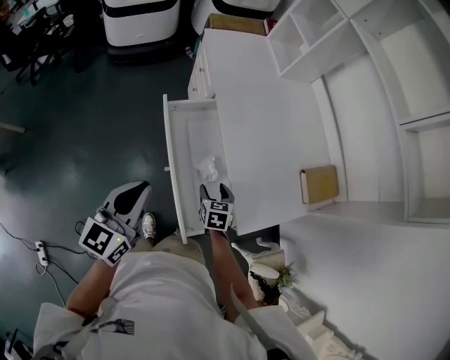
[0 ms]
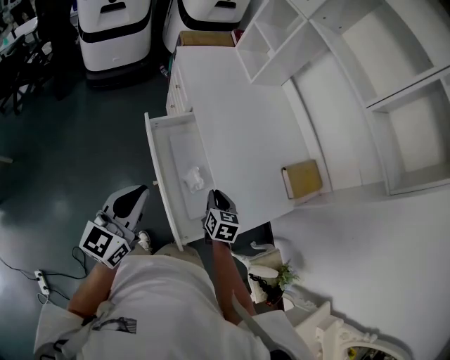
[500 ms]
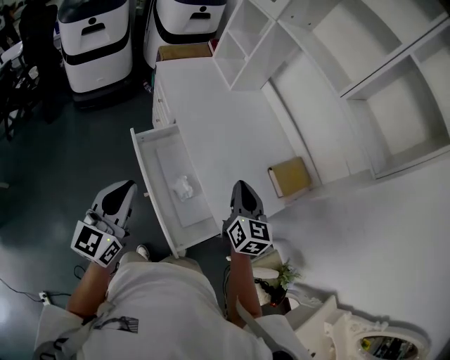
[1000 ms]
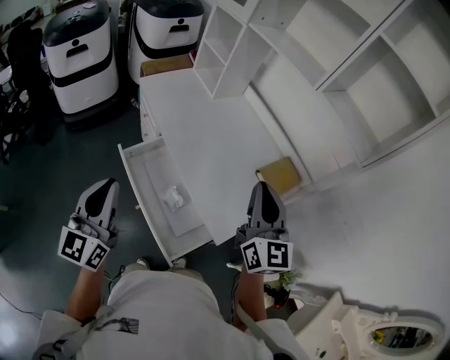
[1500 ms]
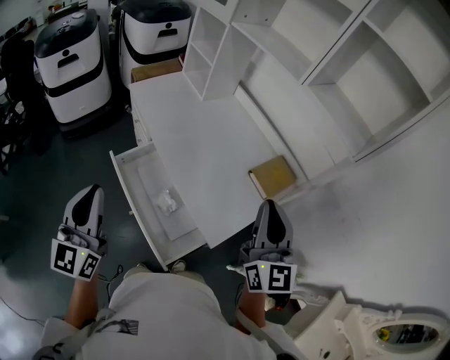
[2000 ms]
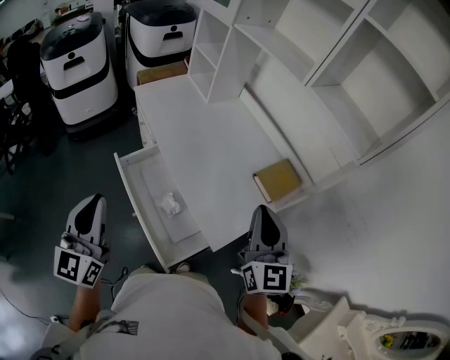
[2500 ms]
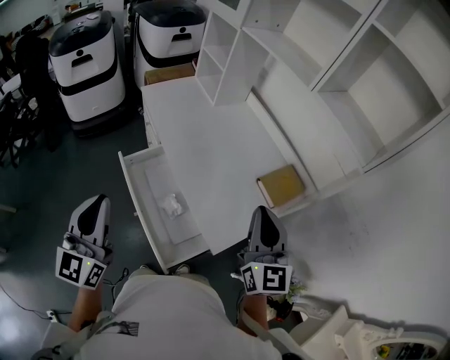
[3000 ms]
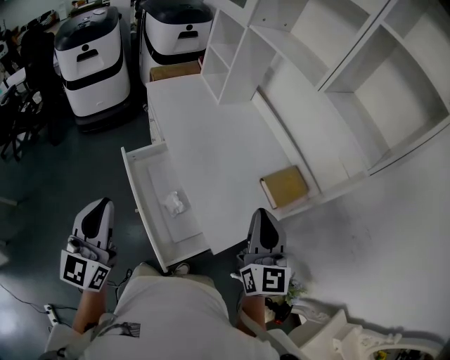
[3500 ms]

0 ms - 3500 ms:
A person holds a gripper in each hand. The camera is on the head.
0 ms - 2000 ms: The right gripper heads upward and to the right, covering about 50 cm, tilts its fingers about 60 degrees upward, and closes its fingers; the left gripper shifts approximately 15 cm upward, and rotates about 20 degrees.
2000 ms - 3500 ms: The right gripper shifts roughly 5 cm downward.

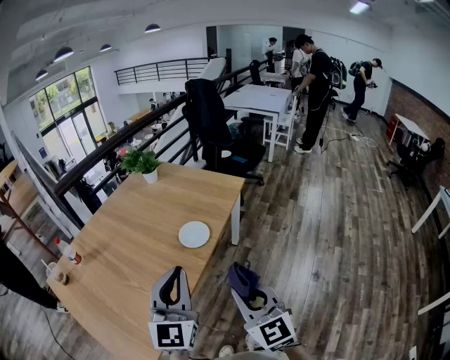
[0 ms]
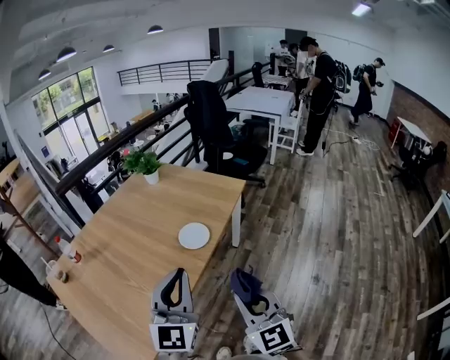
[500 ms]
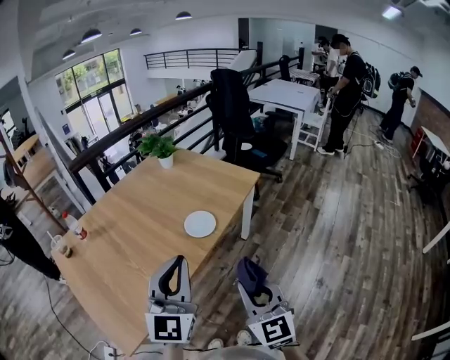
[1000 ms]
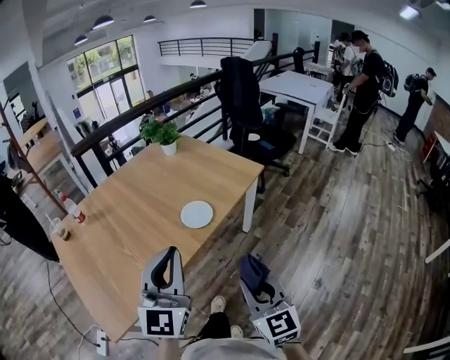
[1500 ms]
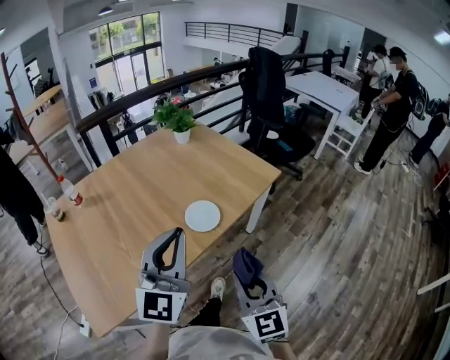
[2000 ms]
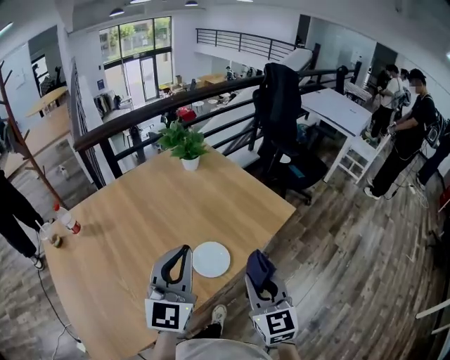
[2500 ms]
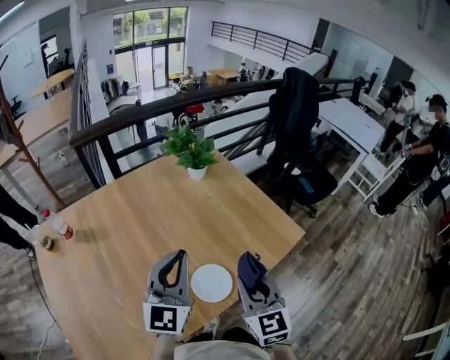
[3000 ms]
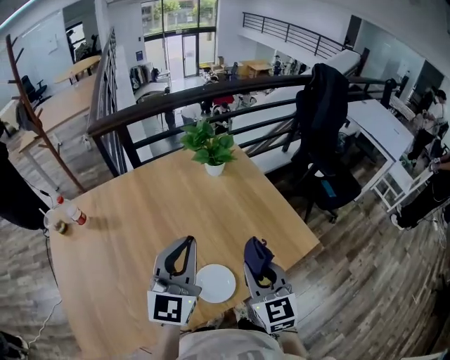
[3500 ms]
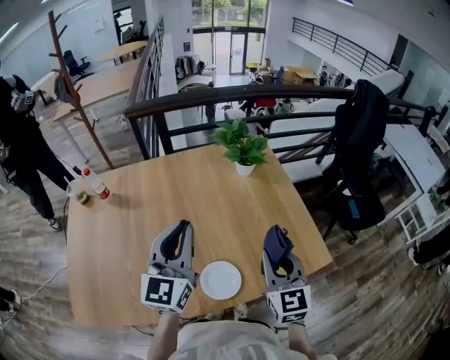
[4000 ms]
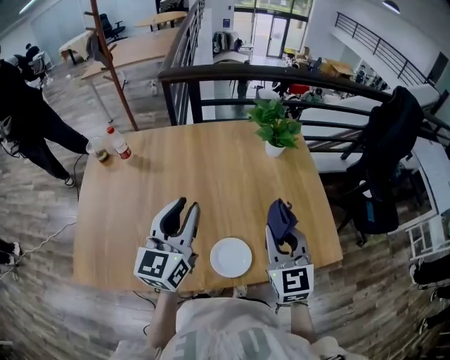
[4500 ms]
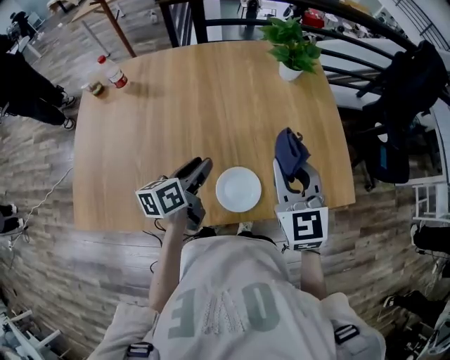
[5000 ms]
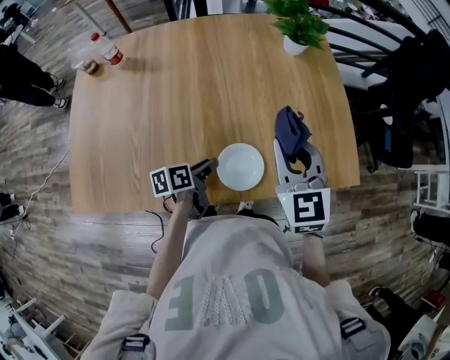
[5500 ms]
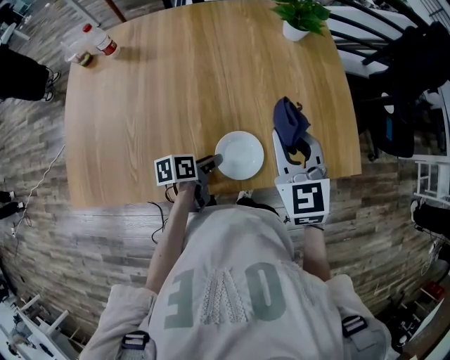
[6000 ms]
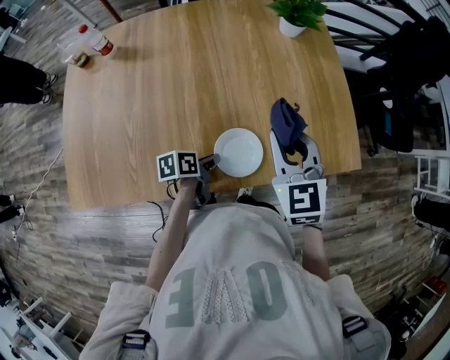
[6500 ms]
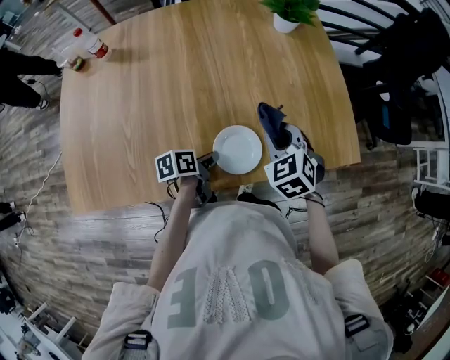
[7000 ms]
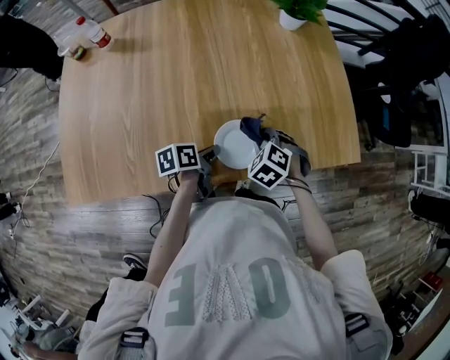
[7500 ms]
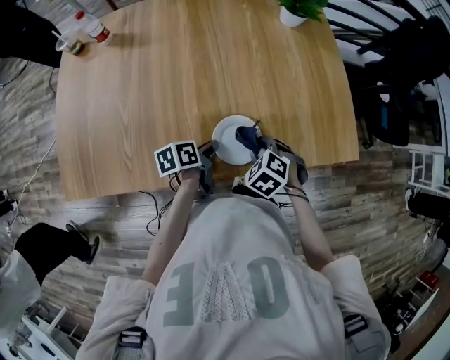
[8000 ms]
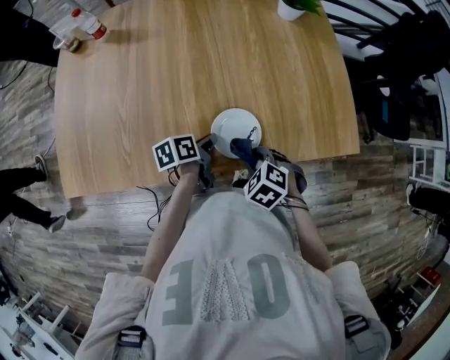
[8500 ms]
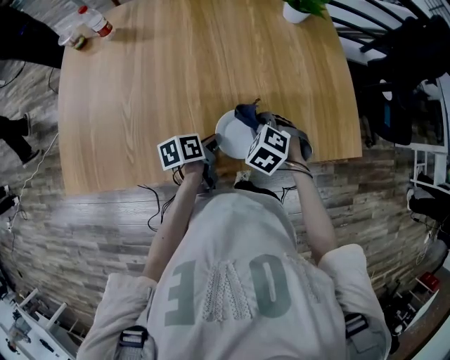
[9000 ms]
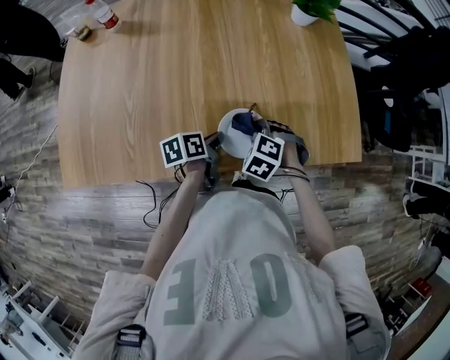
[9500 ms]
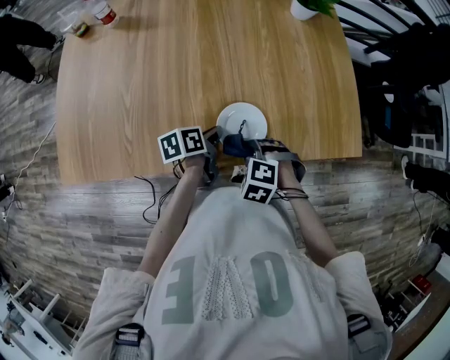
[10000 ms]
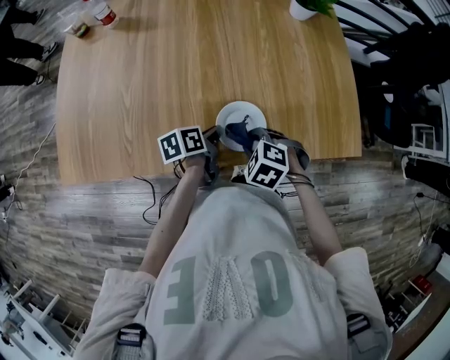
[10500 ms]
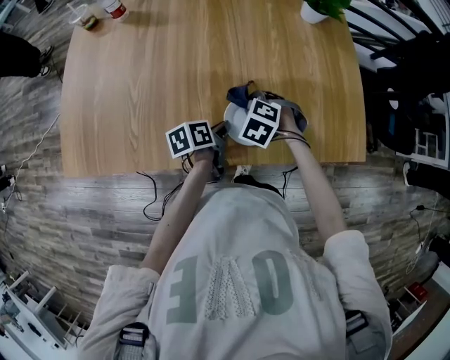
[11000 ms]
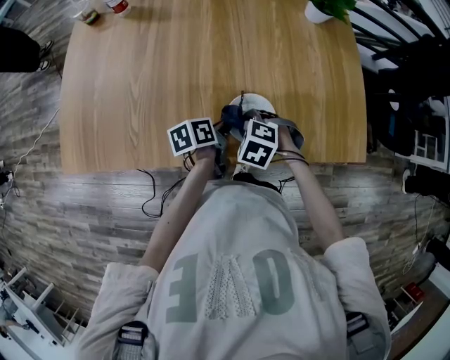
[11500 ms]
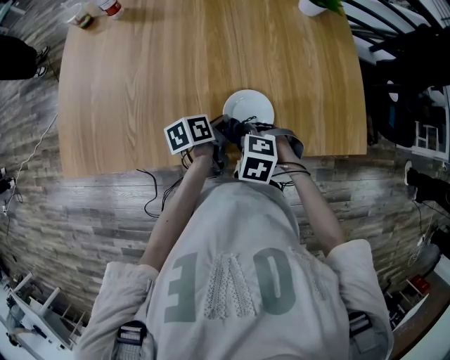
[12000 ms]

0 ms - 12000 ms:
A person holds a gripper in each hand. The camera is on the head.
0 ms - 2000 ms: The left gripper travels forward and to the right by some 10 cm. Meanwhile the right gripper heads forward, to the right and downward, covering about 15 cm.
2000 ms - 4000 ms: The two grippers go approximately 35 cm forward. The left gripper swivels approximately 30 degrees.
4000 ms - 6000 ms: The left gripper goes about 35 cm downward, angles its fingers downward, by approximately 40 degrees, and opens up, while the right gripper travels to the left by some 5 cm.
6000 ms - 8000 ms: The right gripper shifts some 20 cm downward, and points its fingers roughly 50 degrees further downward, while the left gripper closes.
8000 ms - 10000 ms: The right gripper swings forward and backward, roughly 10 cm each way, with 2 reversals, and changes its angle by roughly 20 degrees.

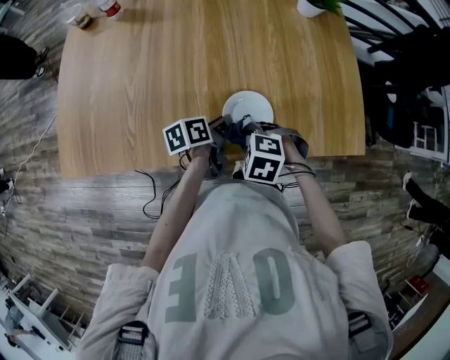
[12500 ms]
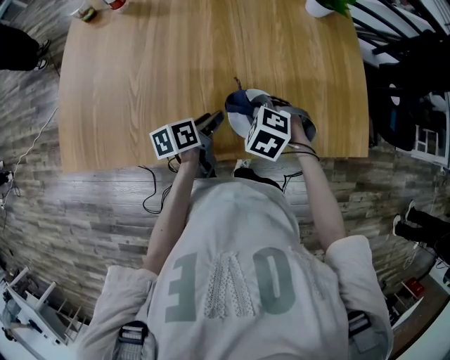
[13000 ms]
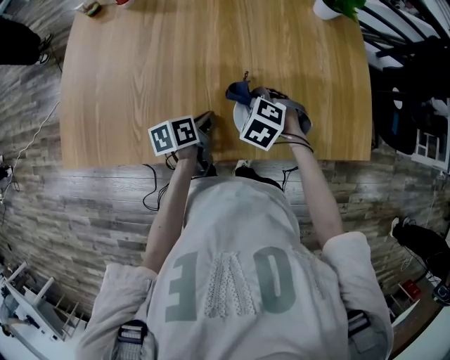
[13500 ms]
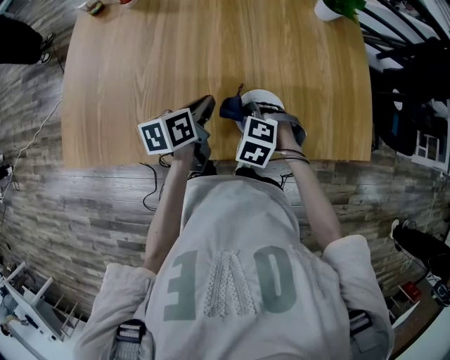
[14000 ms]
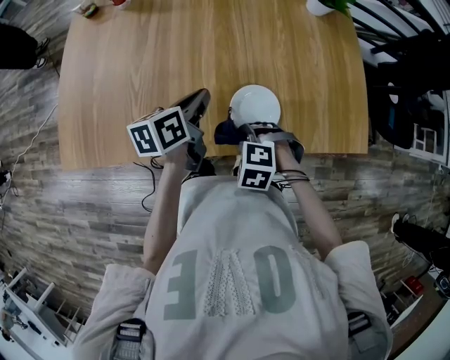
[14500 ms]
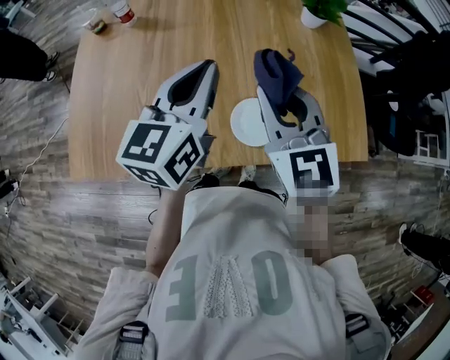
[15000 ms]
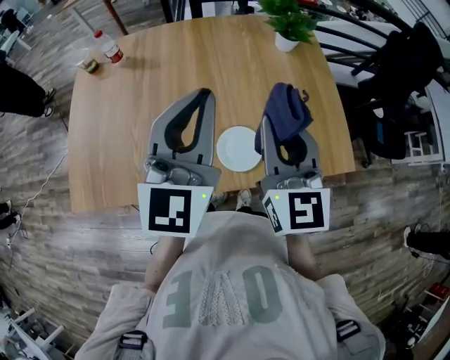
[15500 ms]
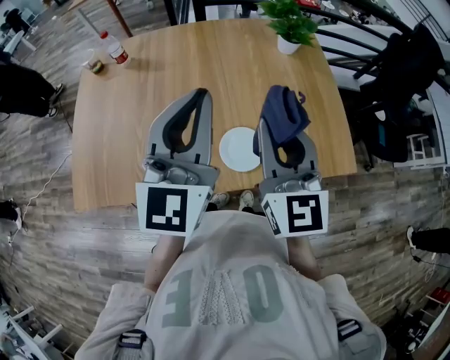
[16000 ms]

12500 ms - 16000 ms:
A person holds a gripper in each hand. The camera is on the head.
12500 ms - 14500 ms: The left gripper goes some 10 cm upward, changes its angle by roughly 20 degrees, and opens and closes again.
14500 ms - 16000 ms: Both grippers move upward, about 30 cm. The right gripper points its fingers roughly 70 degrees further upward. The left gripper rolls clockwise, seen from behind, by some 50 degrees.

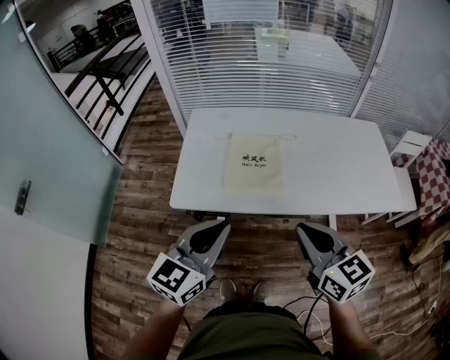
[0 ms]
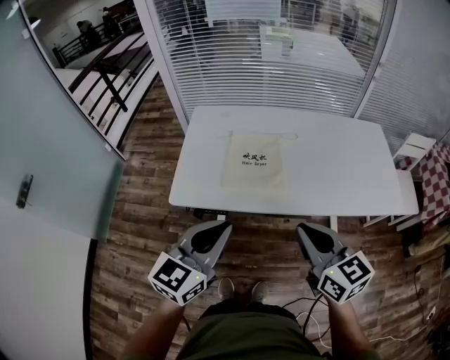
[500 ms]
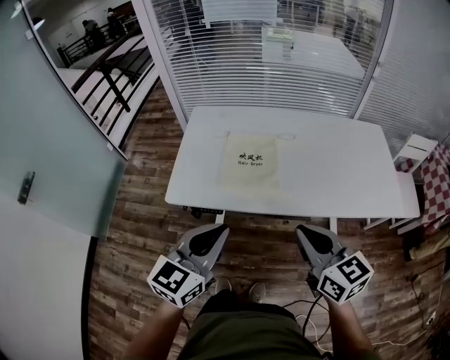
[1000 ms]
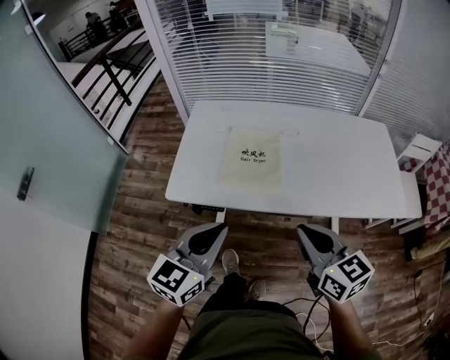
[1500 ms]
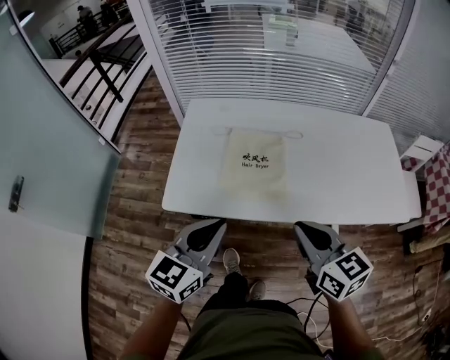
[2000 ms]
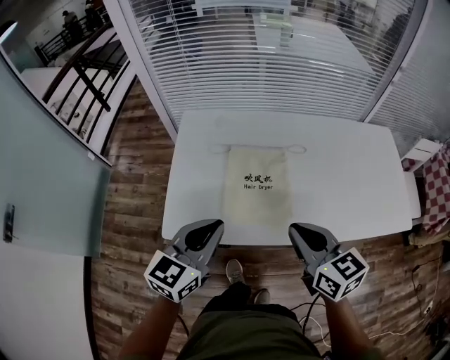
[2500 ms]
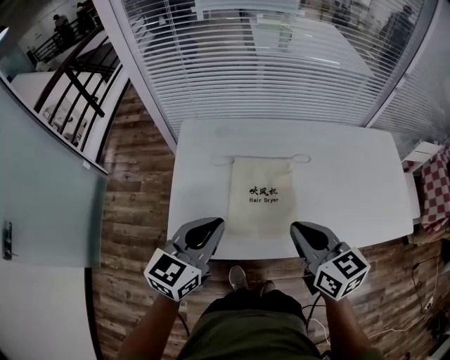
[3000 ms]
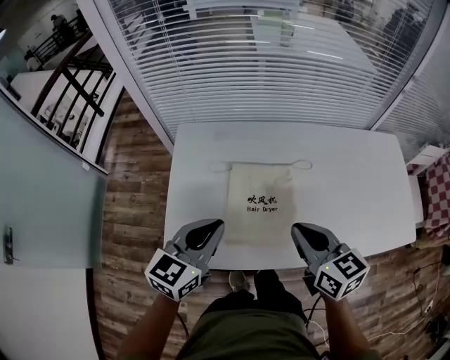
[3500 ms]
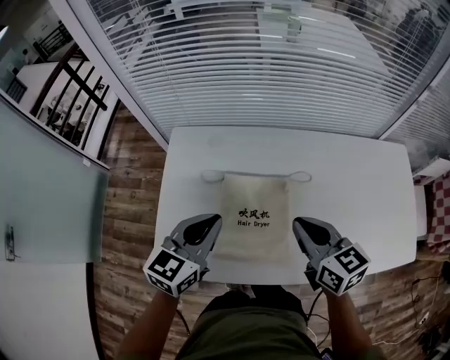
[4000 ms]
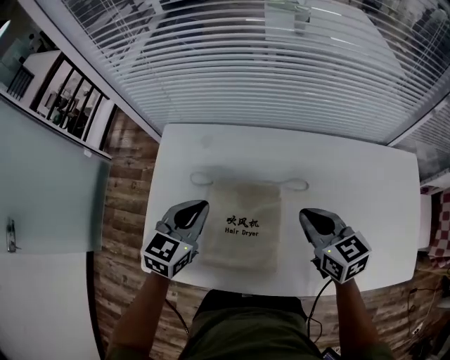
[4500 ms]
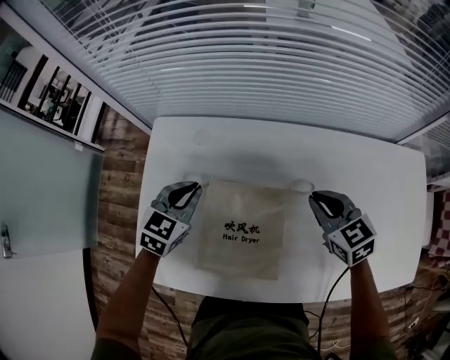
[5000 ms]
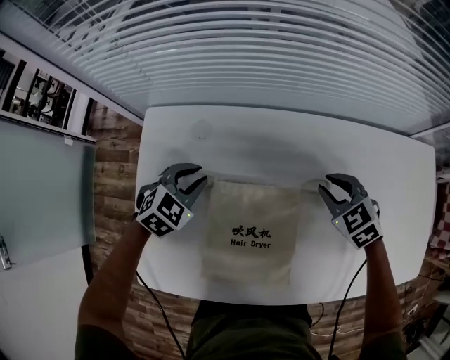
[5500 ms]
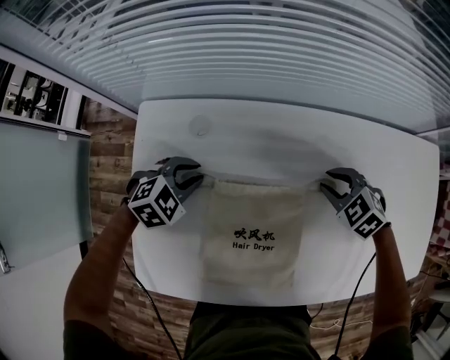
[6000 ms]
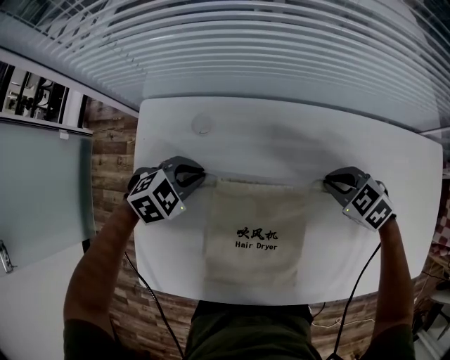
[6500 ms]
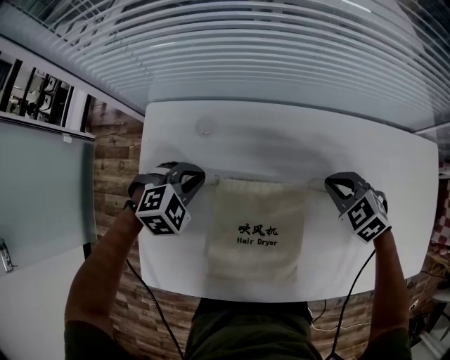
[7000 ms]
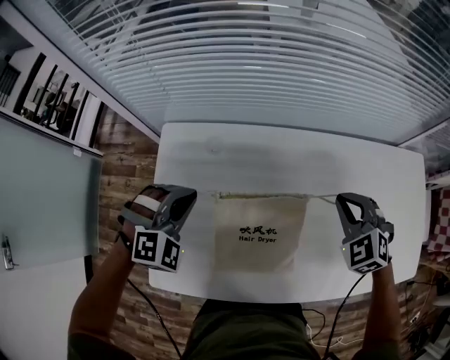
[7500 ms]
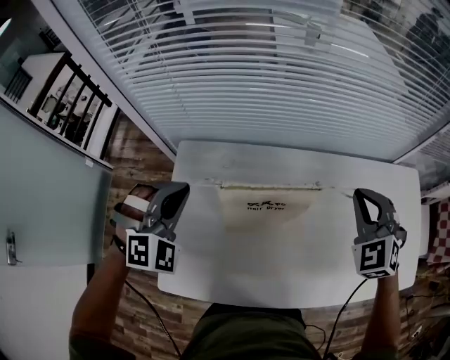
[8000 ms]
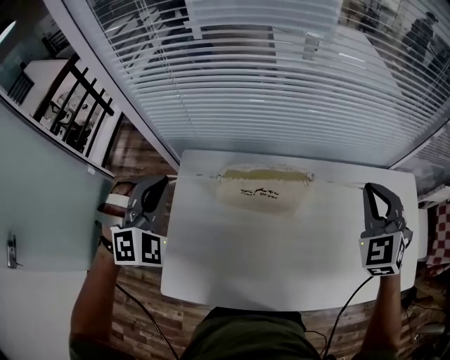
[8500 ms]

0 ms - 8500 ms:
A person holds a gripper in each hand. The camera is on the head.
0 ms - 2000 ms: The two grippers go roughly 10 cm forward and downward.
2000 ms - 4000 ms: The two grippers go approximately 25 cm forward.
4000 ms - 6500 ms: The two grippers go some 25 cm downward. The left gripper angles its fingers downward, by about 40 degrees. Meanwhile the right gripper tilts its fingers about 40 degrees downward.
6500 ms - 8500 ms: Both grippers move upward, approximately 30 cm. The right gripper tips its fingers upward by approximately 40 degrees. Meanwhile the left gripper changes its angle by some 60 degrees.
